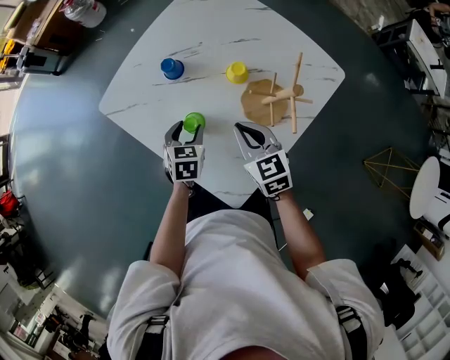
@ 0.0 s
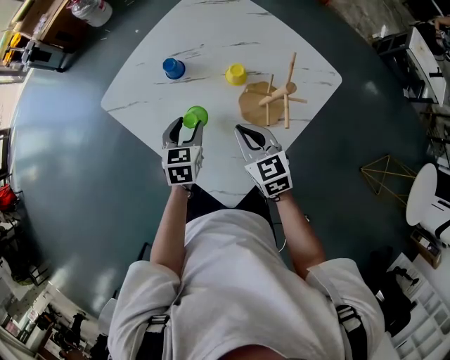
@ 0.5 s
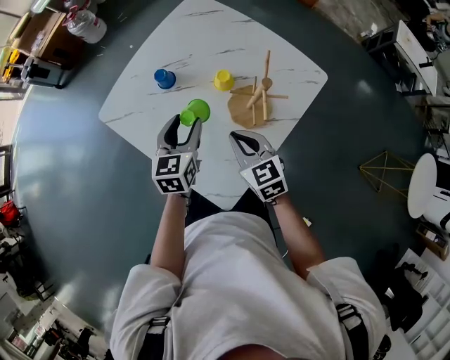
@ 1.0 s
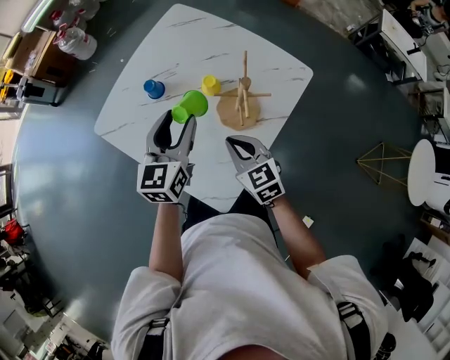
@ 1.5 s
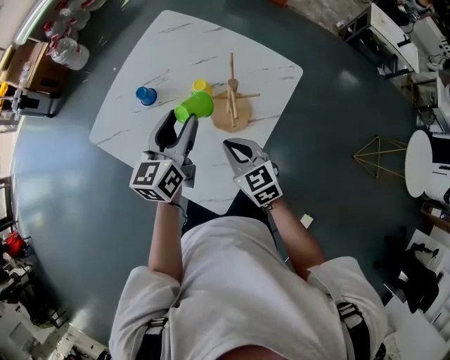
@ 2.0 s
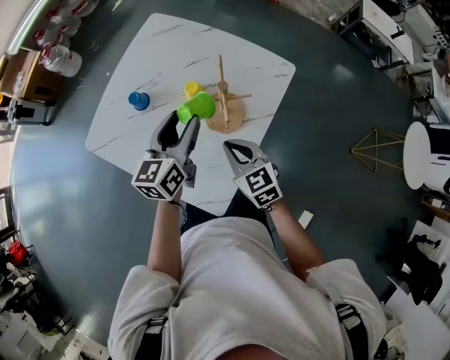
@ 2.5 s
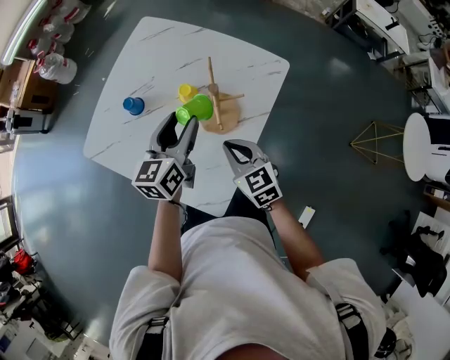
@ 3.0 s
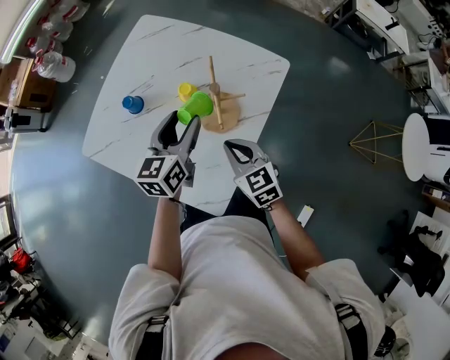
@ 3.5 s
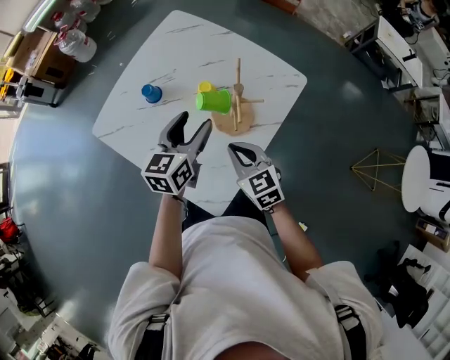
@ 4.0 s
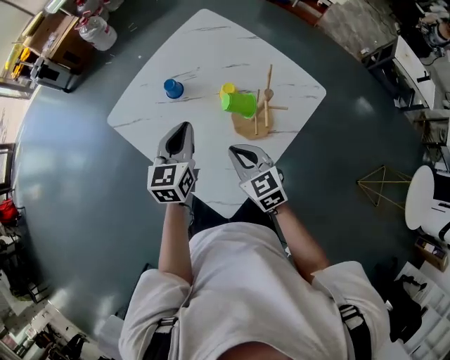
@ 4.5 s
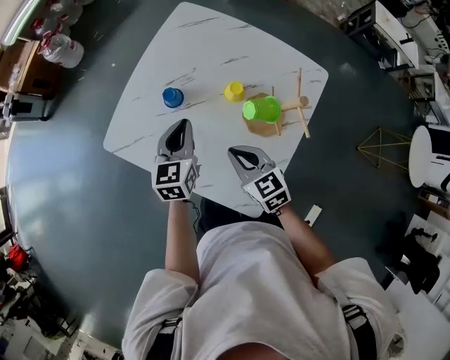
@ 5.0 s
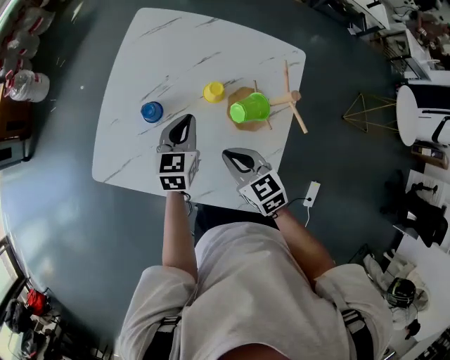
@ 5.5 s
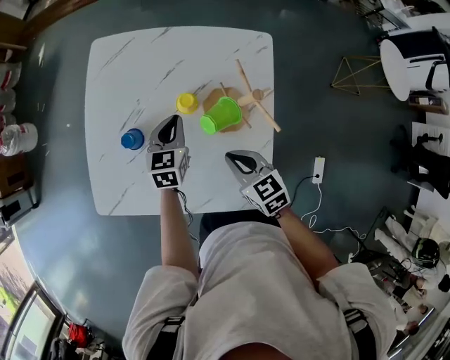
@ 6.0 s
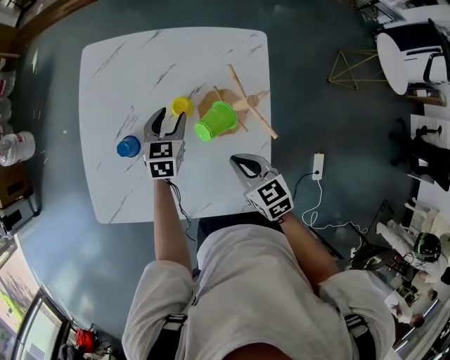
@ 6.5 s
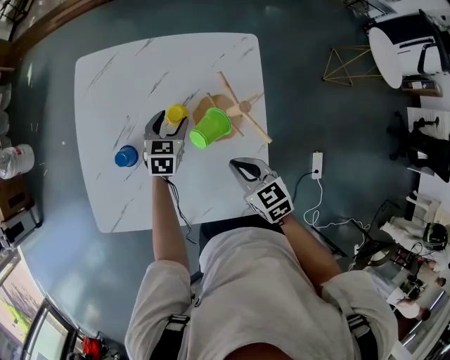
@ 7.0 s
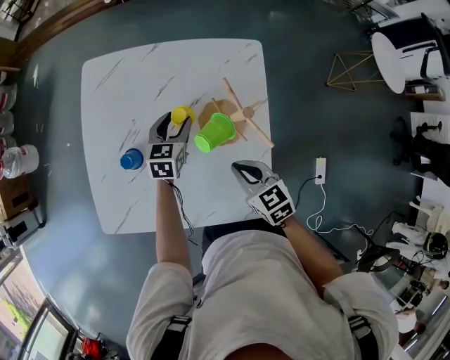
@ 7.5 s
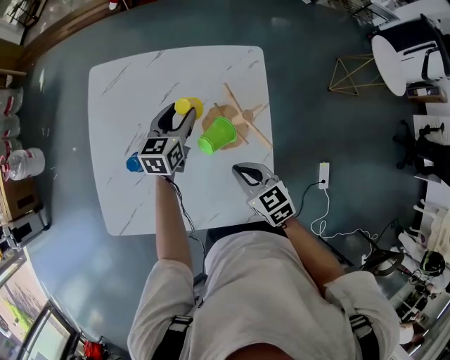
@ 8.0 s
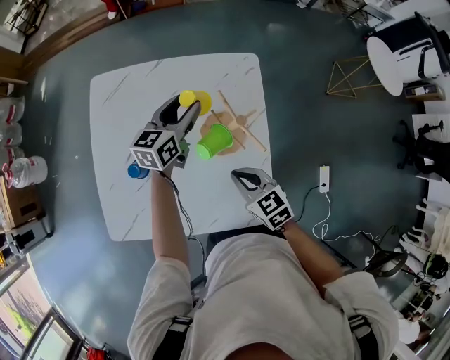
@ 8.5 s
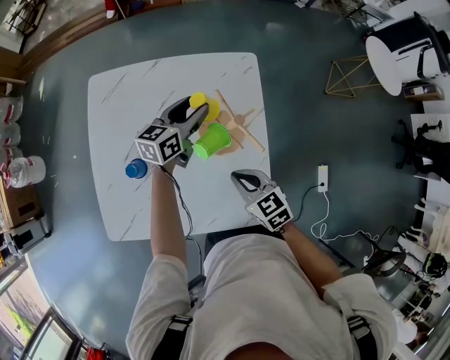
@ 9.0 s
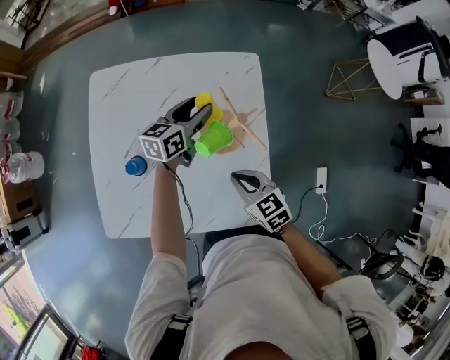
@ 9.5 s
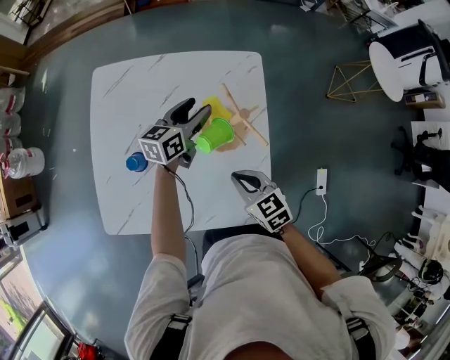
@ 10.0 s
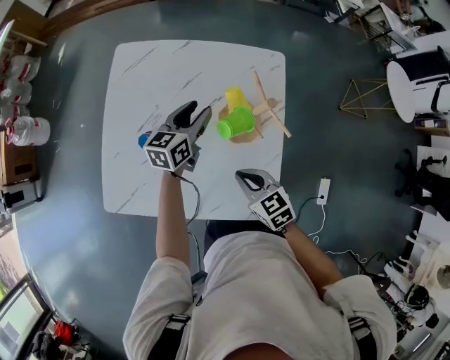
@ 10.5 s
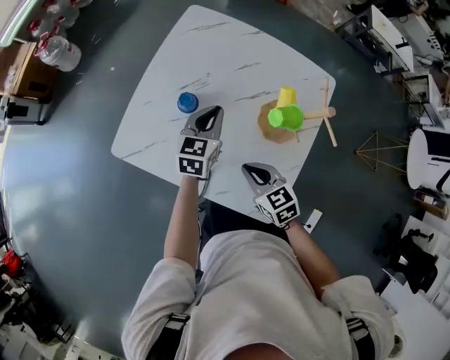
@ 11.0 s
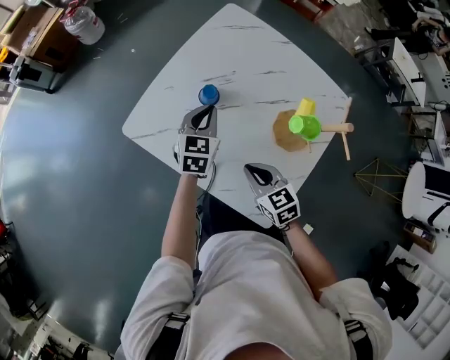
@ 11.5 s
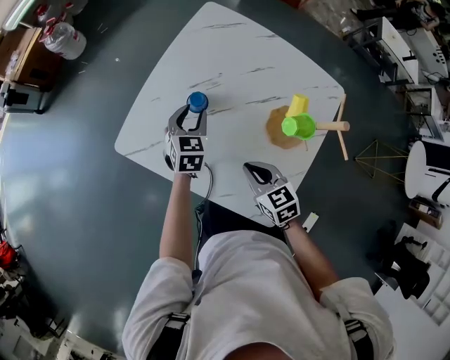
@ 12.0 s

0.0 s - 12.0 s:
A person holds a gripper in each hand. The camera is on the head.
0.0 s - 2.0 s: The left gripper moves upward and to the right, roughly 25 cm, and angles its fingers upward, by approximately 40 degrees, while the right gripper goes some 10 cm backward and to the right.
4.0 s - 6.0 s: The right gripper turns by about 30 degrees; the left gripper travels downward by some 15 cm, swivels approximately 30 degrees, and closes up.
6.0 s - 8.0 s: The left gripper is displaced forward and to the right by approximately 10 cm, and opens its fingers.
8.0 s - 10.0 s: The left gripper shifts by about 5 cm.
10.0 s - 12.0 s: The left gripper ends up approximately 30 cm from where it was, rotates approximately 60 degrees, and closes, then opens again; the right gripper changes place by approximately 15 cm, and rotates some 30 degrees.

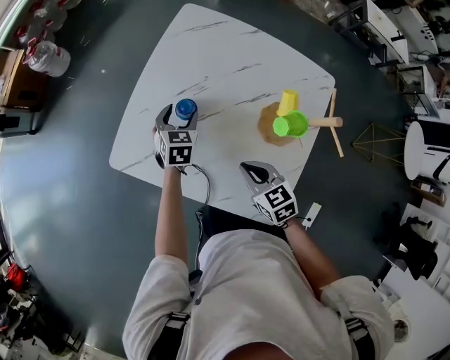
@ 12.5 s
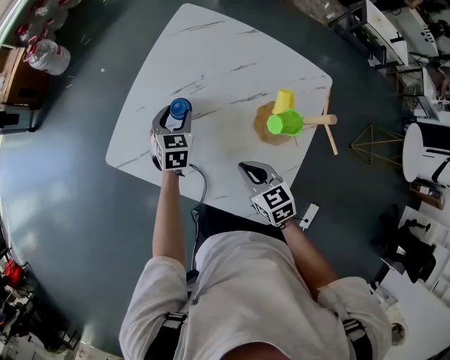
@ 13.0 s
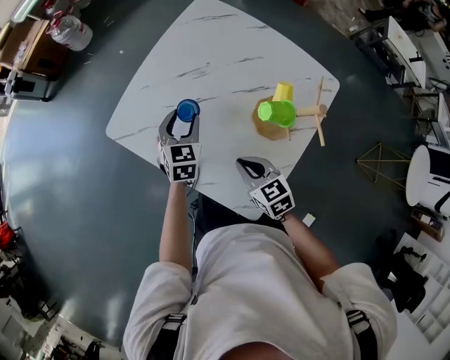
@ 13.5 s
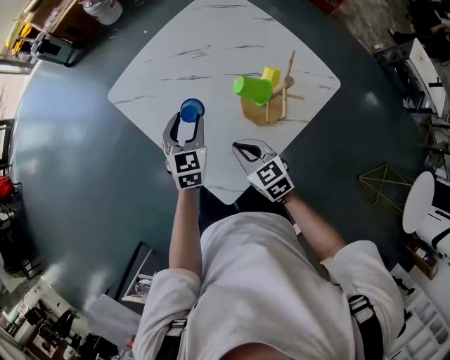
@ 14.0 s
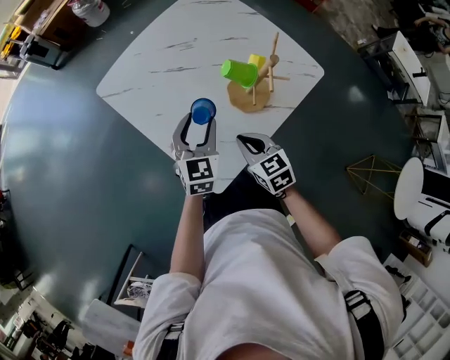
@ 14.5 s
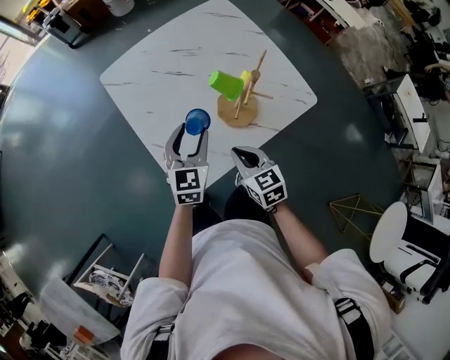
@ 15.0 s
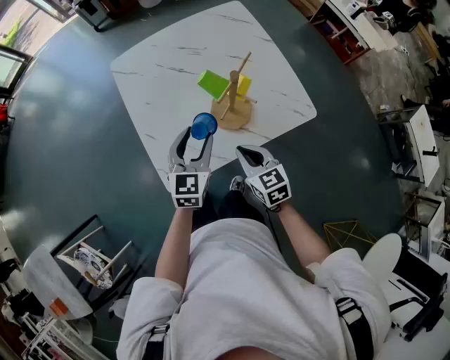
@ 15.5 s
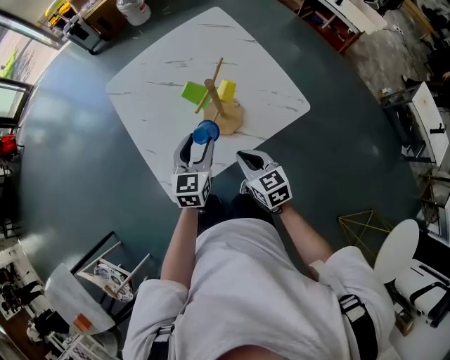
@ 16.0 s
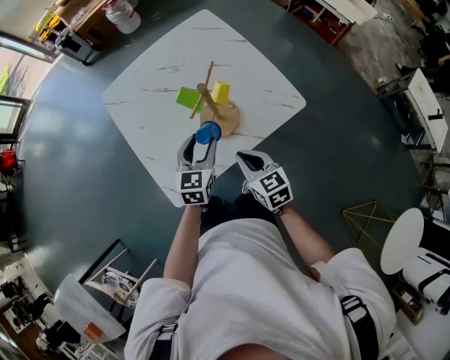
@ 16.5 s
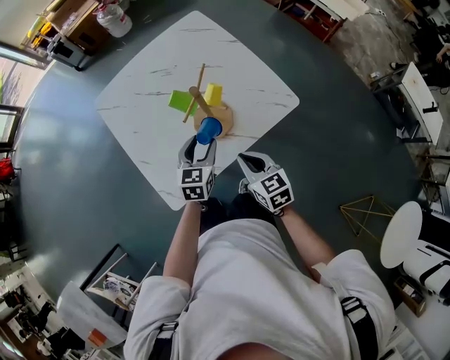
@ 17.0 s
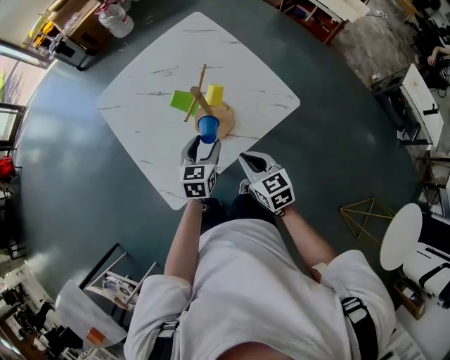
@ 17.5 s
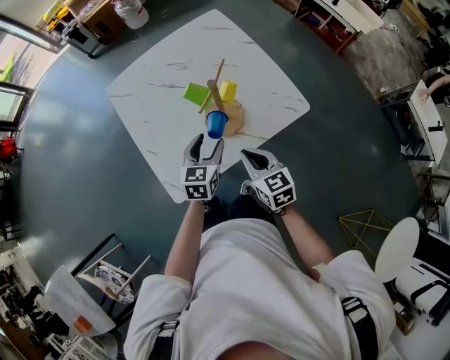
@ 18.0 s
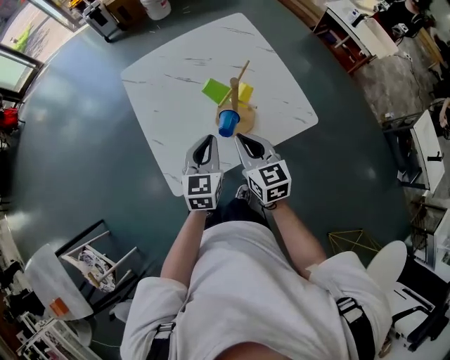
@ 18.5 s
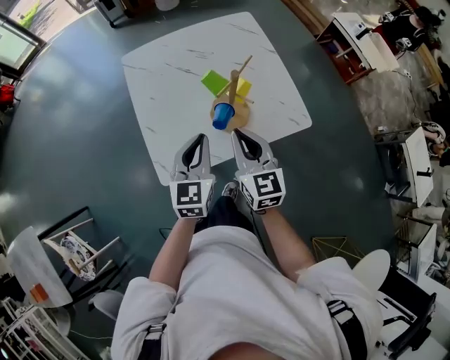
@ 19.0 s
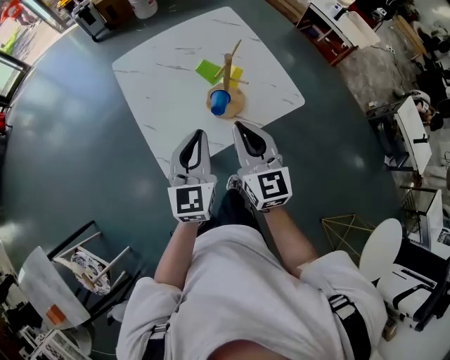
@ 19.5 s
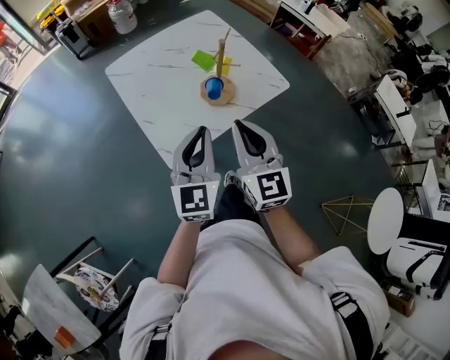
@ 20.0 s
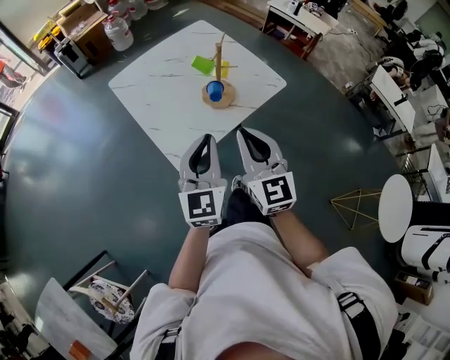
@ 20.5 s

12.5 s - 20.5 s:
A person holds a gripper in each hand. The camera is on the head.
12.5 s - 14.5 s: The right gripper moves approximately 15 cm, and turns by approximately 20 degrees, while the left gripper moves about 30 cm, and rotates approximately 30 degrees.
14.5 s - 16.5 s: The left gripper moves to the right and backward, roughly 15 cm, while the right gripper travels to the right by approximately 15 cm.
16.5 s - 18.5 s: The two grippers go about 5 cm upward. The left gripper closes.
18.5 s - 20.5 s: The two grippers go about 25 cm backward and upward. The left gripper turns by some 20 degrees, while the right gripper changes its angle by approximately 30 degrees.

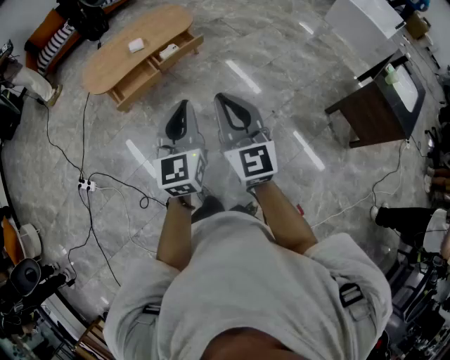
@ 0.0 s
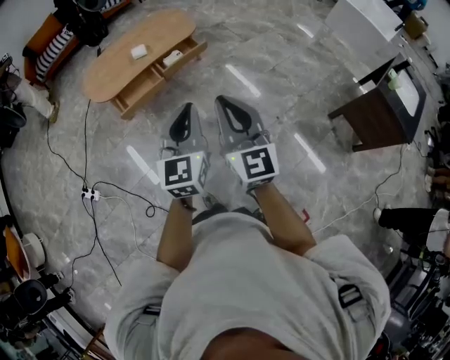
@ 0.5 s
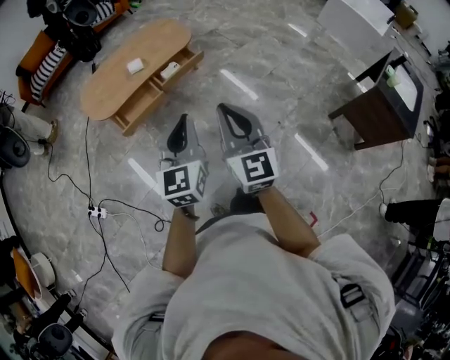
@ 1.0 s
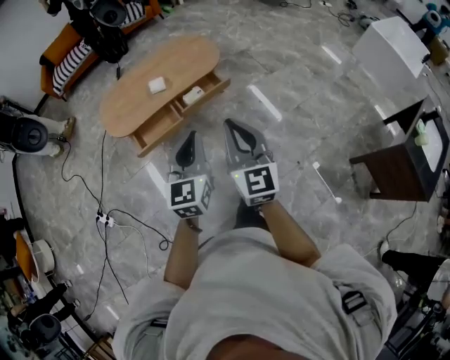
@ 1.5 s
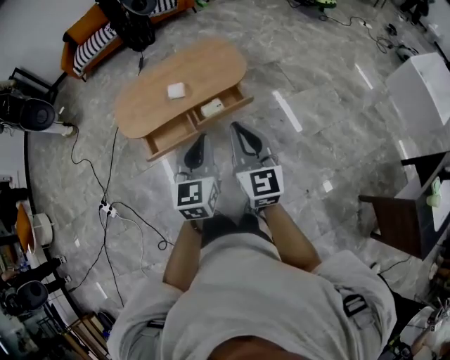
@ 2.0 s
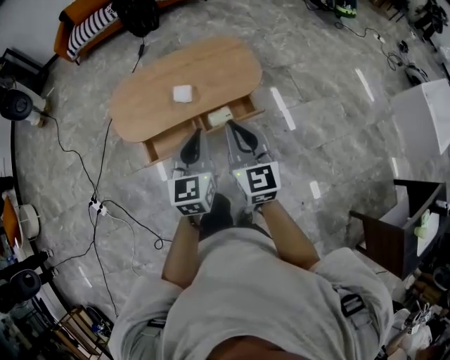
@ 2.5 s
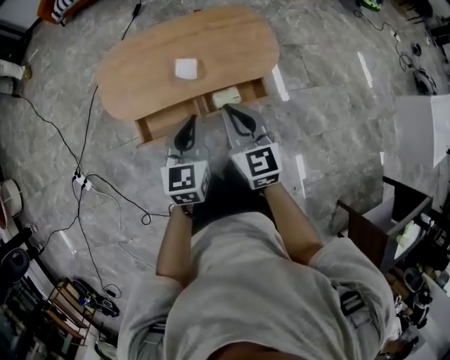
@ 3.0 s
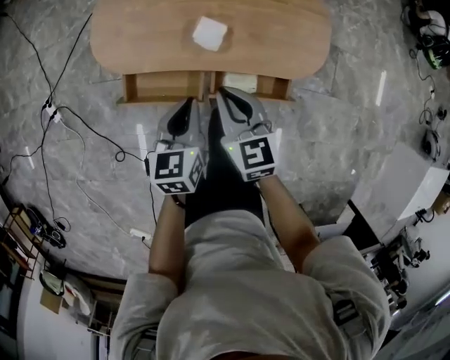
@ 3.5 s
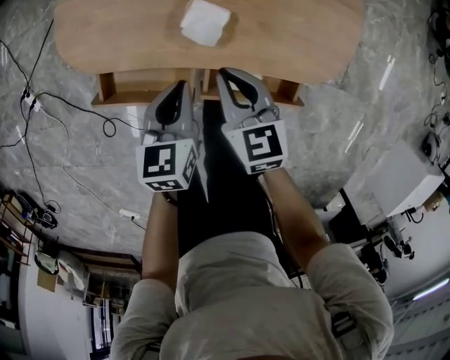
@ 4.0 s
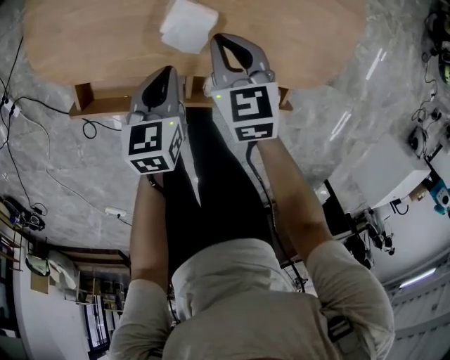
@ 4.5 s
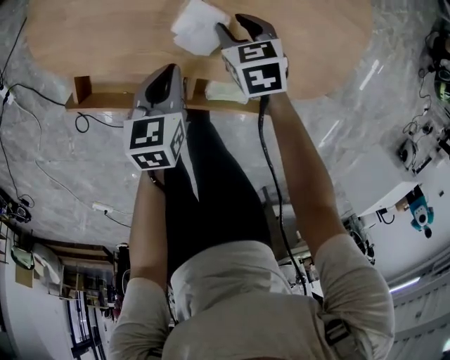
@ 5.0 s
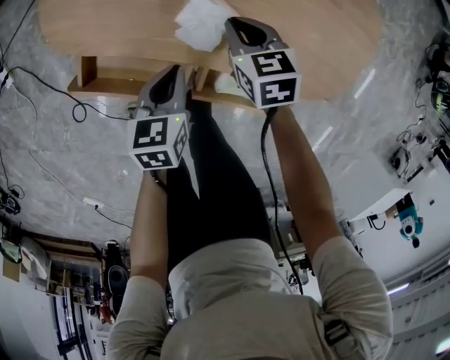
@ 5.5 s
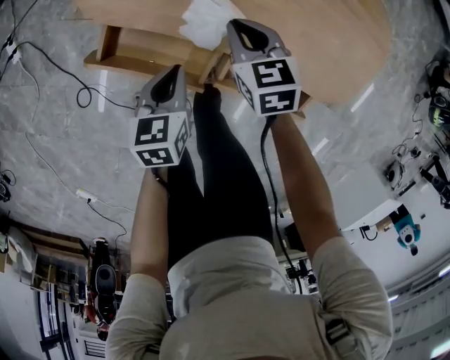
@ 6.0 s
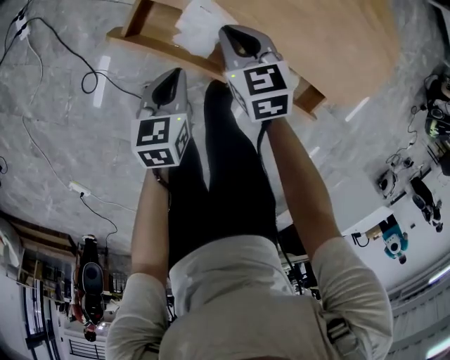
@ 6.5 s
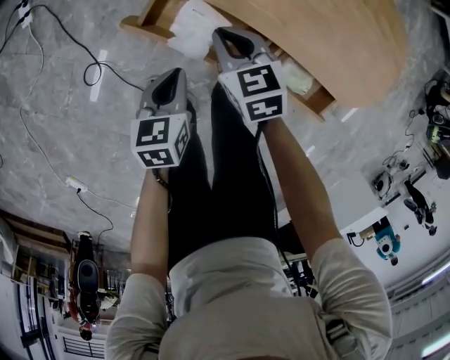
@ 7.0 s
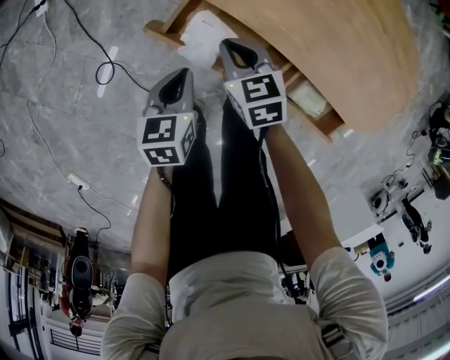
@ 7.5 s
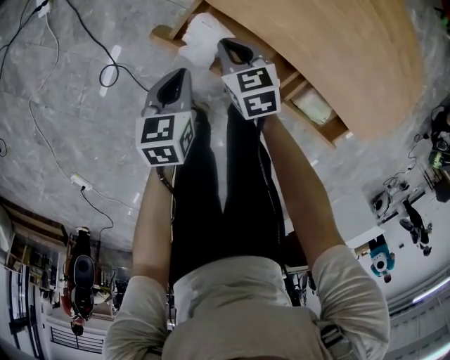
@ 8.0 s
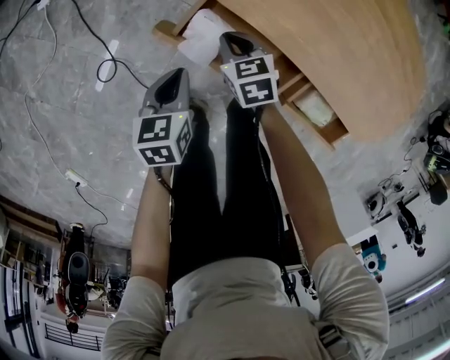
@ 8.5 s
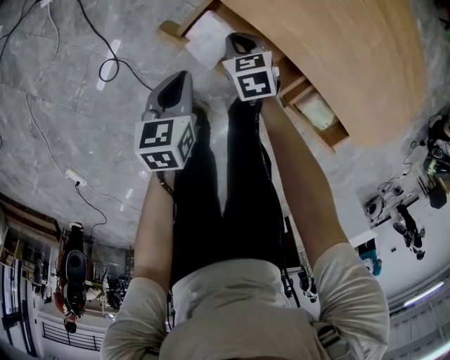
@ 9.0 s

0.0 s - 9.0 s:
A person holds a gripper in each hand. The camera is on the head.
0.0 s - 2.0 s: Both grippers are carried forward, some 40 cm.
2.0 s - 4.5 s: The pair of grippers is taken roughly 50 cm. The right gripper angles its fingers downward, by some 50 degrees. The left gripper angles its fingers downward, by about 30 degrees.
4.5 s - 7.0 s: The left gripper moves to the left and backward, about 30 cm, and changes its angle by approximately 20 degrees, while the right gripper travels to the left by some 30 cm, rotates approximately 30 degrees, and opens, then closes once more.
7.0 s - 9.0 s: The left gripper travels to the left by roughly 5 cm, while the right gripper travels downward by about 15 cm.
